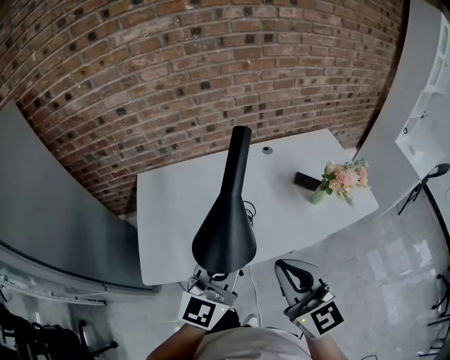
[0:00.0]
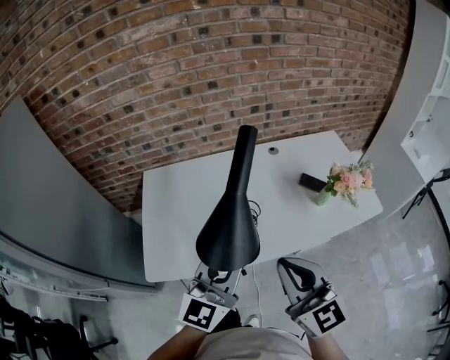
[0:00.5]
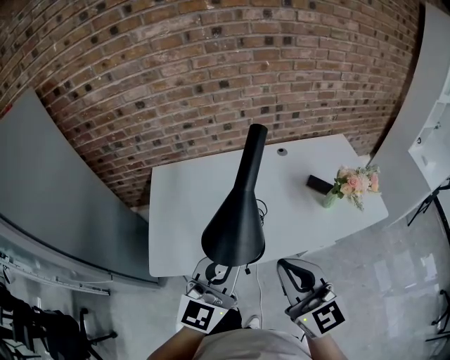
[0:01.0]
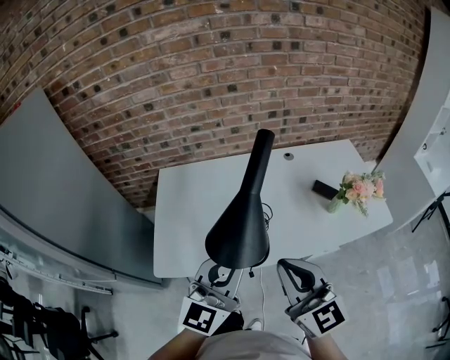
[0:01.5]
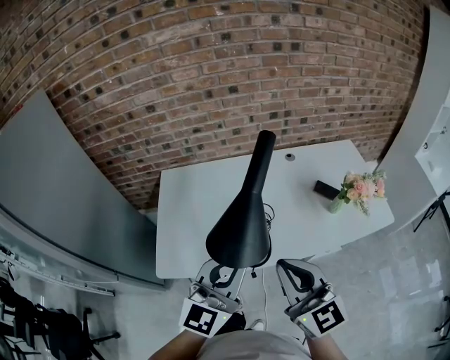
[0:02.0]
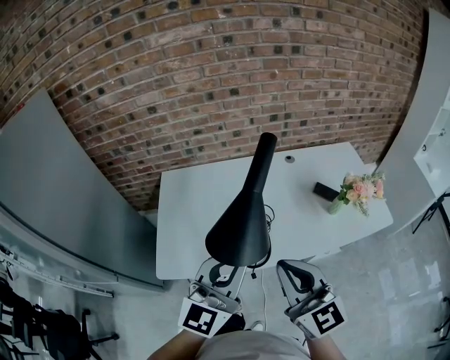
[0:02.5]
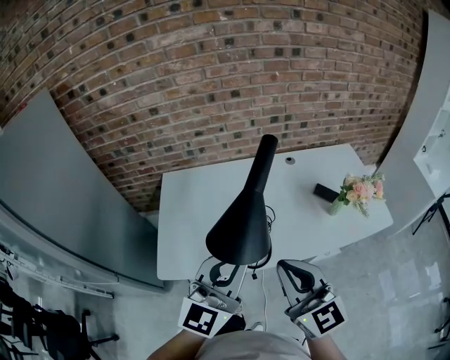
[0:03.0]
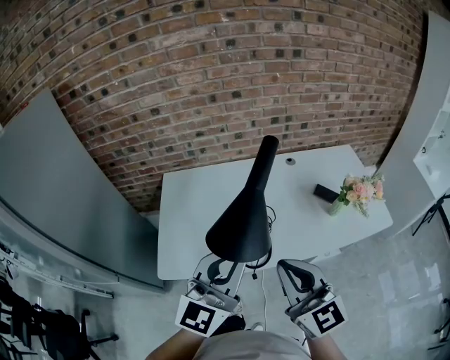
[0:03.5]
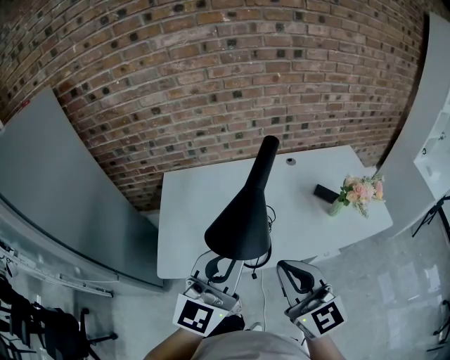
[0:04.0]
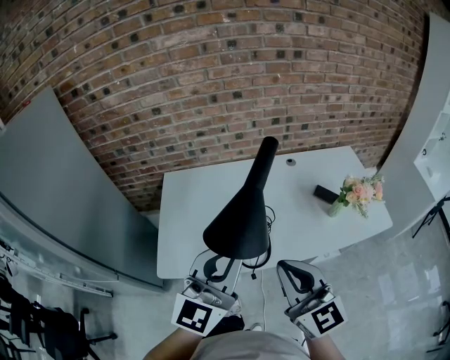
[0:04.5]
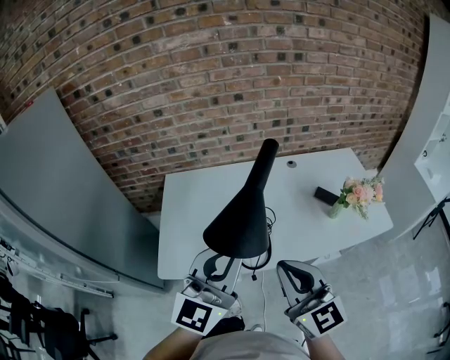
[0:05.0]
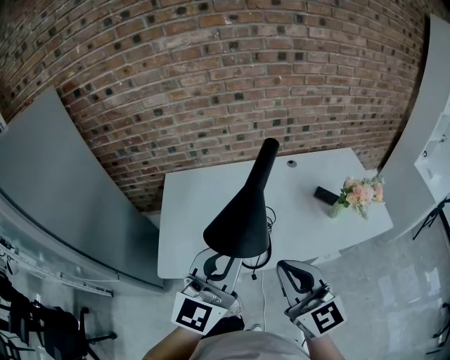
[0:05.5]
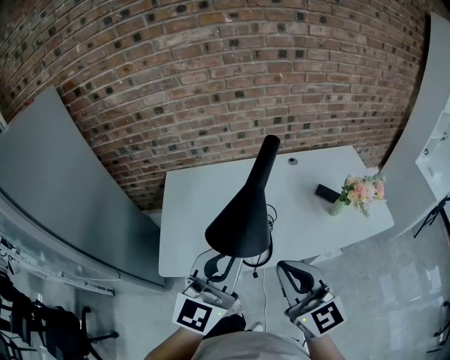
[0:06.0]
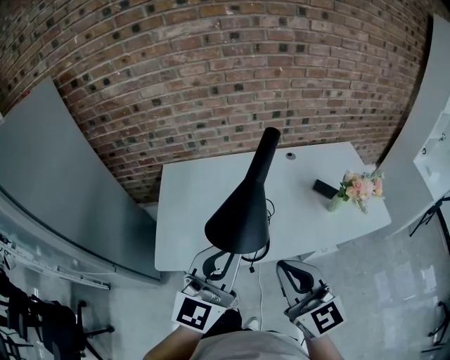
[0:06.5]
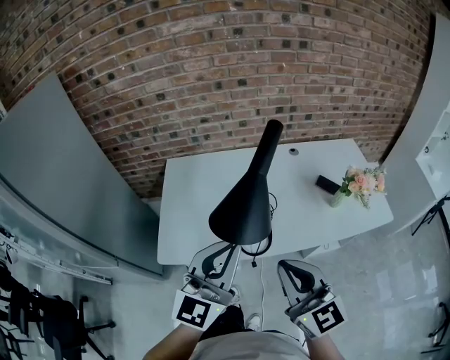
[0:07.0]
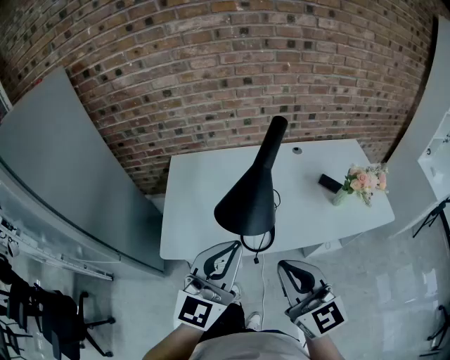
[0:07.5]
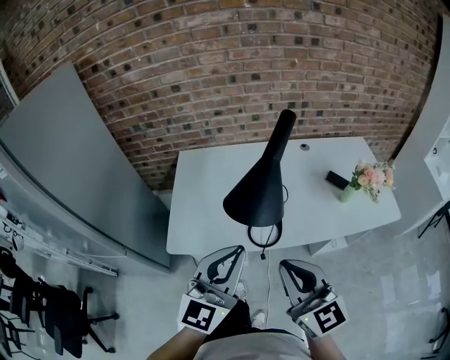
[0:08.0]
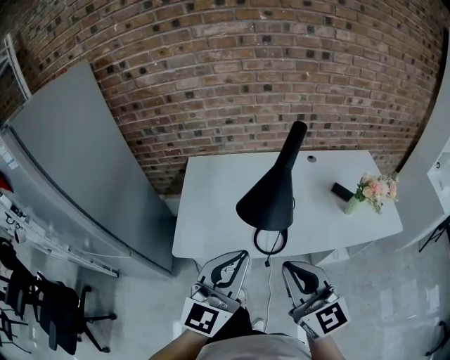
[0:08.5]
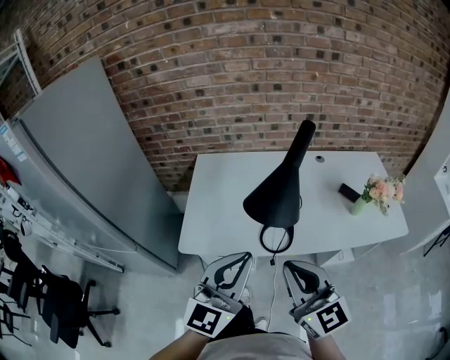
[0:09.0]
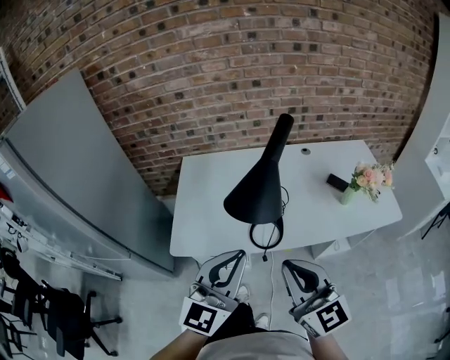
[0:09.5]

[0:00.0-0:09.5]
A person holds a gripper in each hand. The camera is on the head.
0:00.0 to 0:02.0: The grippers make only small movements.
0:02.0 to 0:04.0: The grippers stay close to where they were, moving slightly.
0:04.0 to 0:05.5: Both grippers stay about where they are.
0:05.5 to 0:07.5: The right gripper shifts by some 5 cm. The left gripper changes place by approximately 5 cm.
0:07.5 to 0:09.5: The grippers make only small movements.

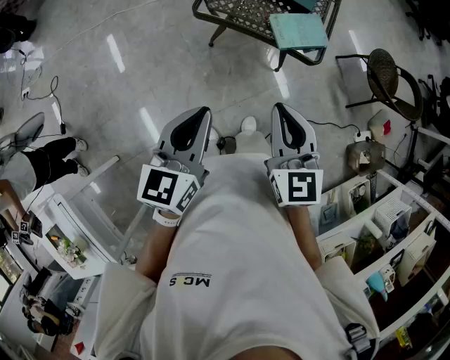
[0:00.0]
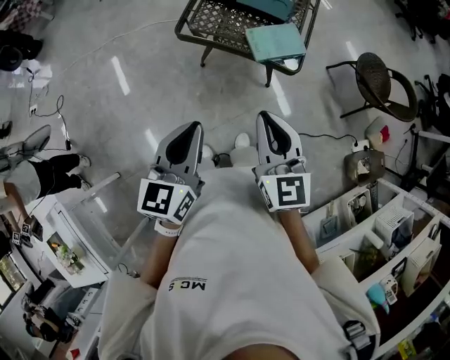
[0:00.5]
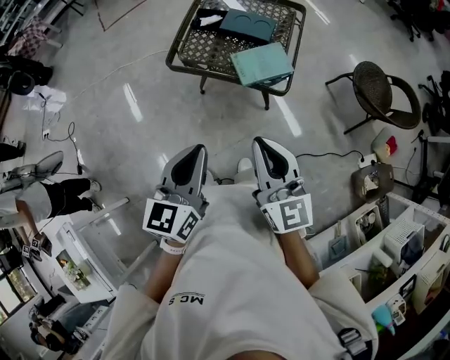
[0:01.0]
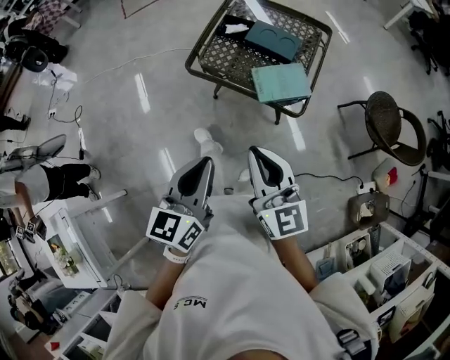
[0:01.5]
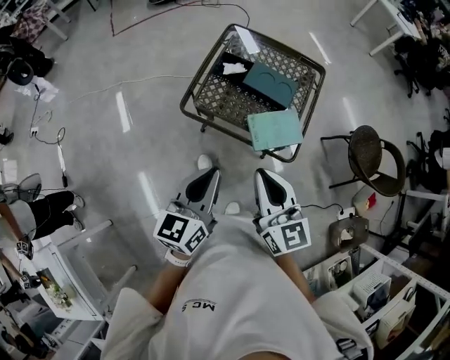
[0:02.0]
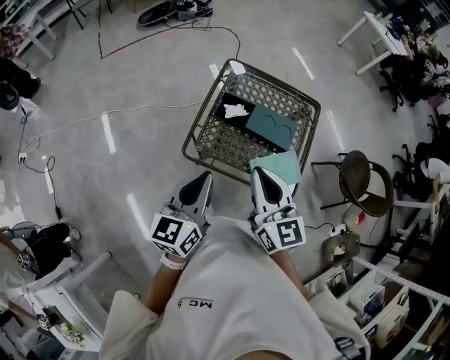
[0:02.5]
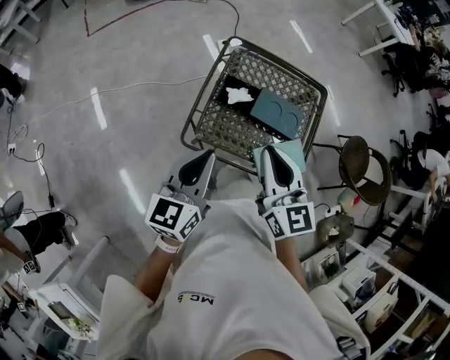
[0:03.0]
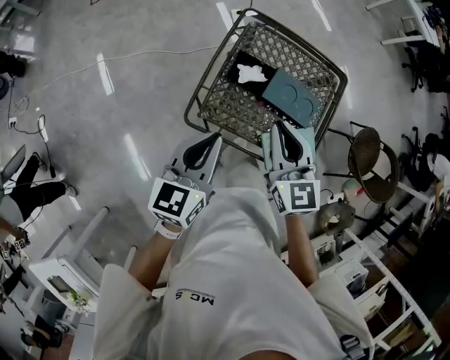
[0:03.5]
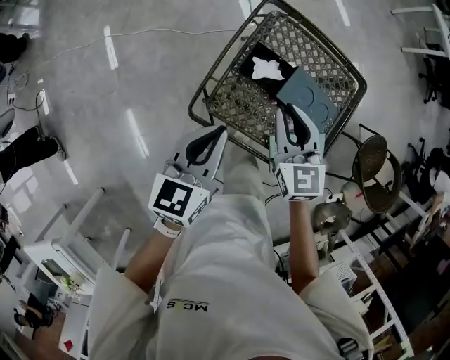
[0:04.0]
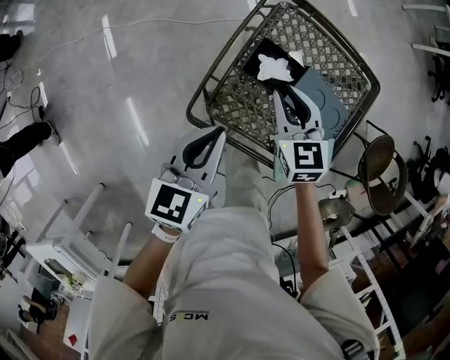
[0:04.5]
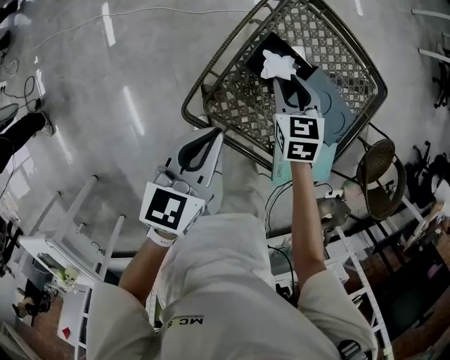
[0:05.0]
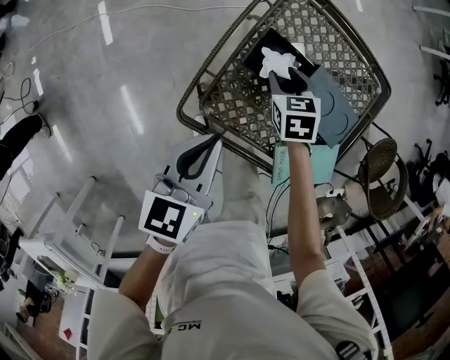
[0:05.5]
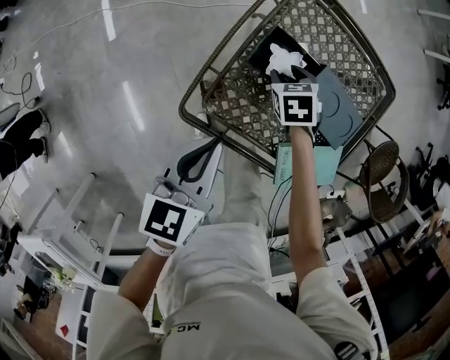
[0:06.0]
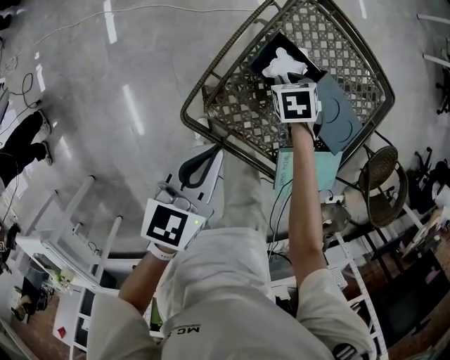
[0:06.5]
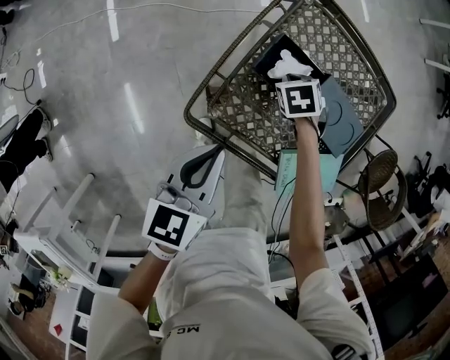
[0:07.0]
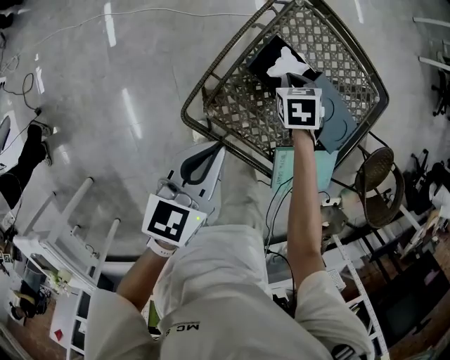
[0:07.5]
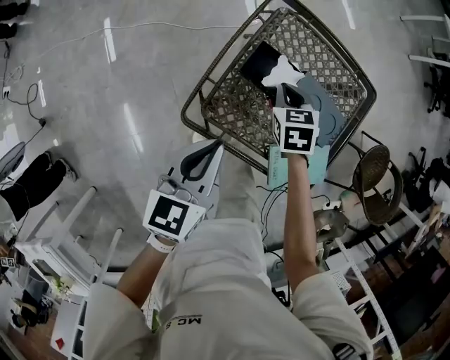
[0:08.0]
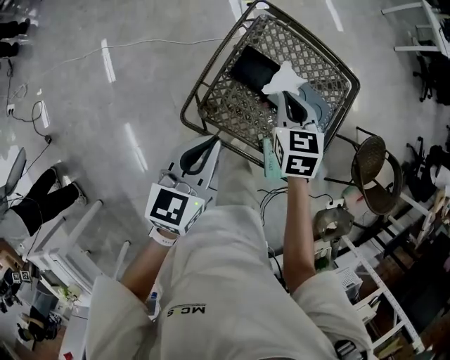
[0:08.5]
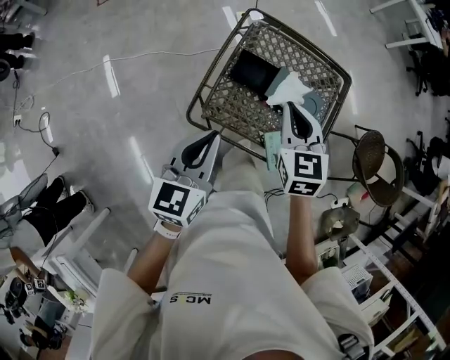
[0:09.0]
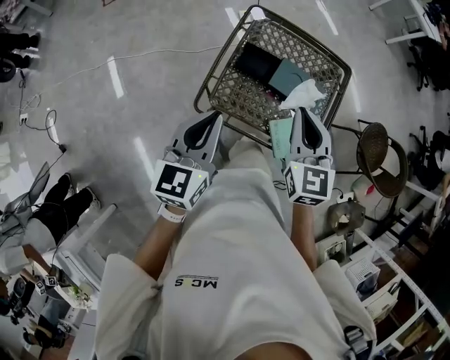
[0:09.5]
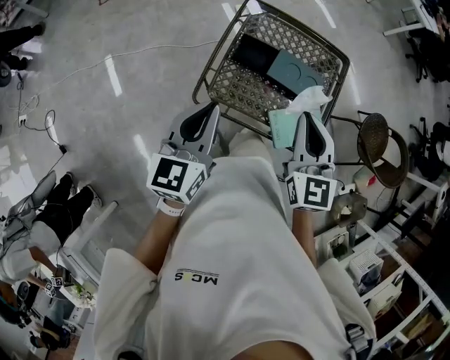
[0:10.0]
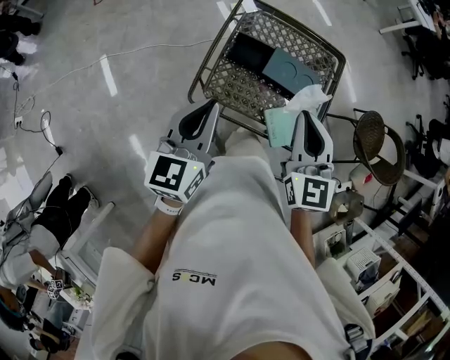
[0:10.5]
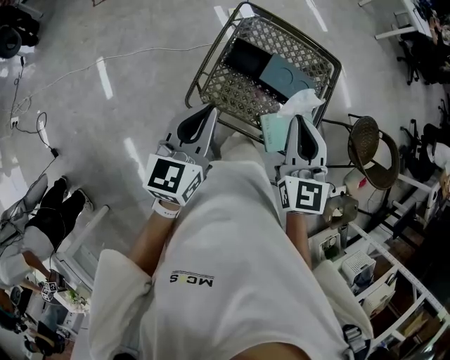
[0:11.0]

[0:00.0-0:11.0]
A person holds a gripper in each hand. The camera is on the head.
0:00.0 to 0:02.0: The grippers both shift forward and to the right by roughly 15 cm. The right gripper rotates some 20 degrees.
0:02.0 to 0:03.5: The right gripper heads forward, covering roughly 30 cm. The left gripper travels forward and to the left by some 25 cm.
0:03.5 to 0:05.5: The left gripper goes approximately 15 cm downward. The right gripper travels downward and forward by some 35 cm, tilts its fingers roughly 40 degrees downward, and opens up.
0:05.5 to 0:07.5: The right gripper closes.
0:07.5 to 0:09.0: The right gripper shifts roughly 30 cm upward and backward, and points its fingers roughly 40 degrees further upward, while the left gripper moves upward, roughly 15 cm.
0:09.0 to 0:11.0: The right gripper moves backward and upward, roughly 15 cm.

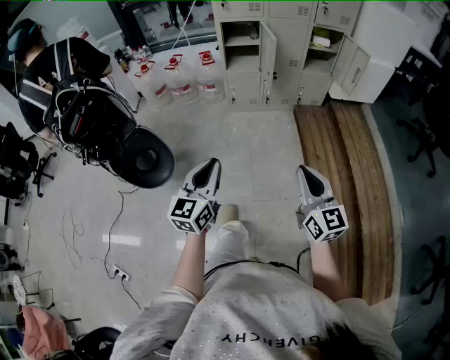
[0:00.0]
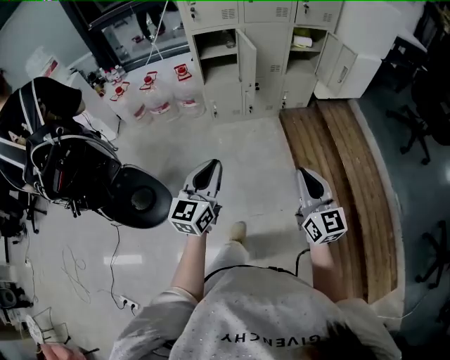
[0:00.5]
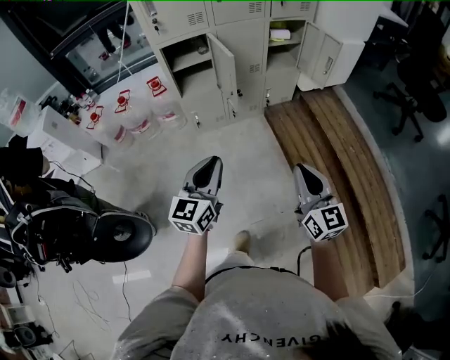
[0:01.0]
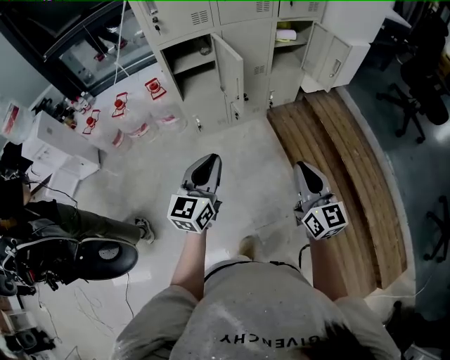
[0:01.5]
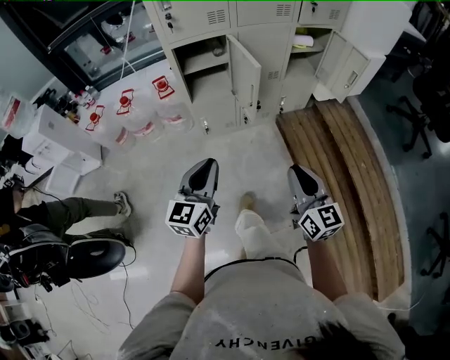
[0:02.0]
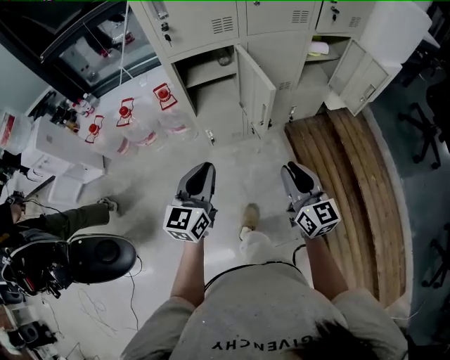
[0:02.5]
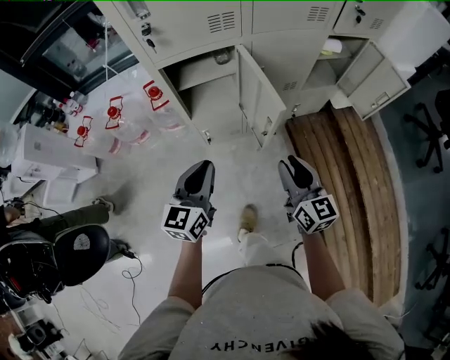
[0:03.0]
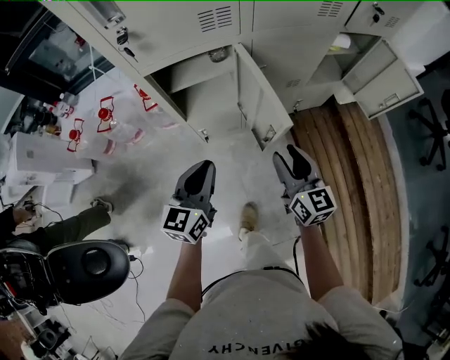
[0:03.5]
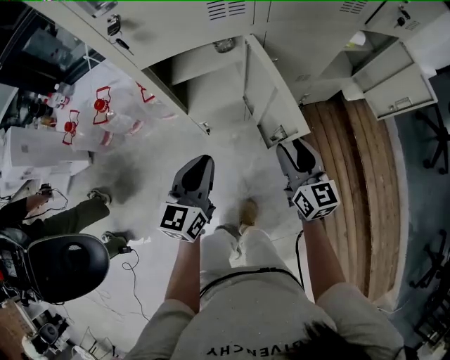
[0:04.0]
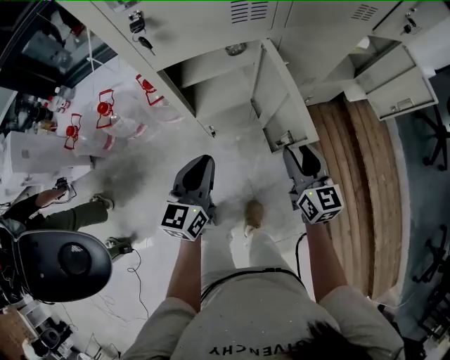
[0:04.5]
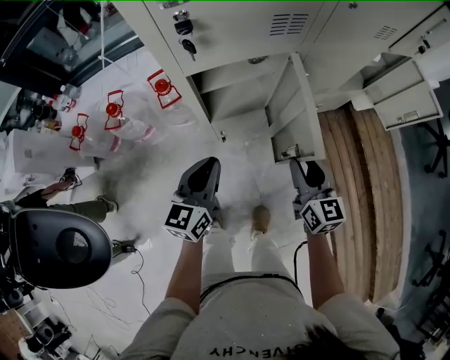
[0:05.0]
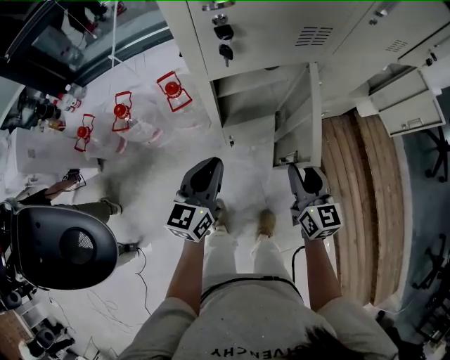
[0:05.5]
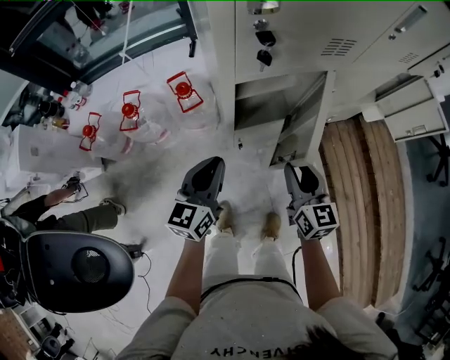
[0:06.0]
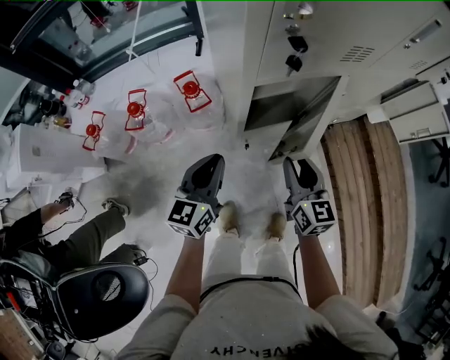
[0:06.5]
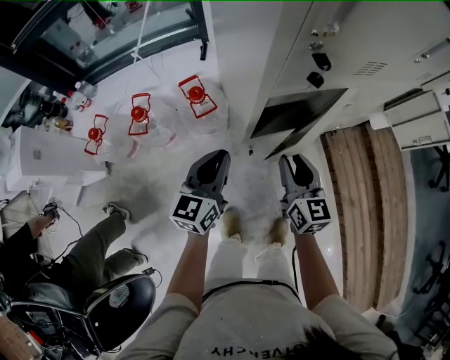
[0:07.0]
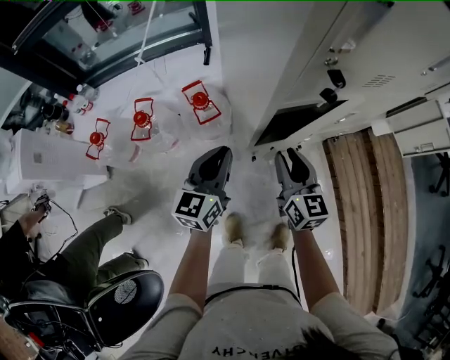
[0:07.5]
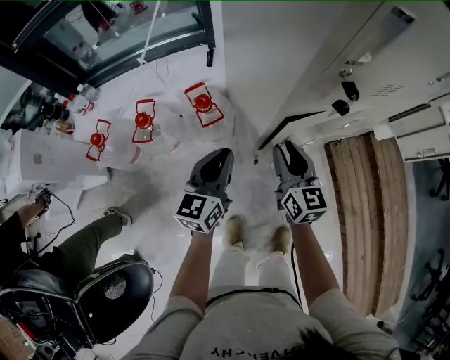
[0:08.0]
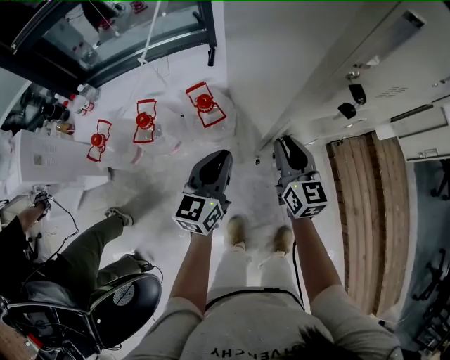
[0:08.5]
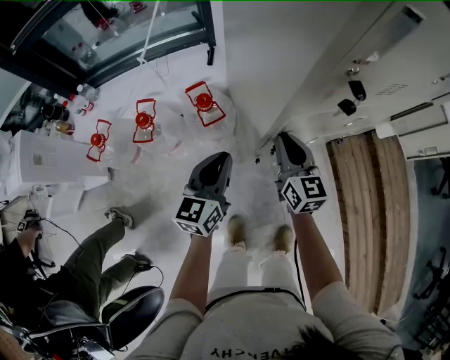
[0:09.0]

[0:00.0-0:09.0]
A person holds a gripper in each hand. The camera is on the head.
0:00.0 to 0:02.0: Both grippers travel together forward, some 40 cm.
0:02.0 to 0:04.5: Both grippers travel together forward, approximately 35 cm. The right gripper opens its fingers.
0:04.5 to 0:07.0: The grippers both shift to the left by roughly 20 cm.
0:07.0 to 0:09.0: The left gripper shifts by approximately 5 cm; the right gripper travels forward and to the left by approximately 10 cm, and closes up.
